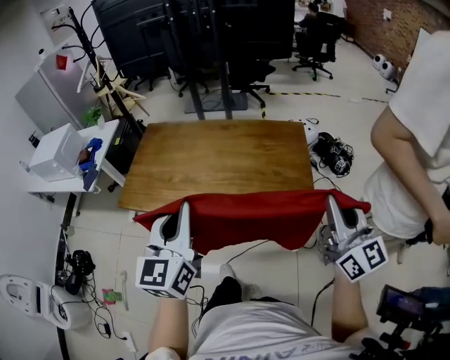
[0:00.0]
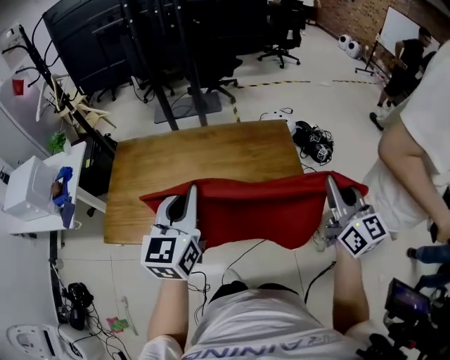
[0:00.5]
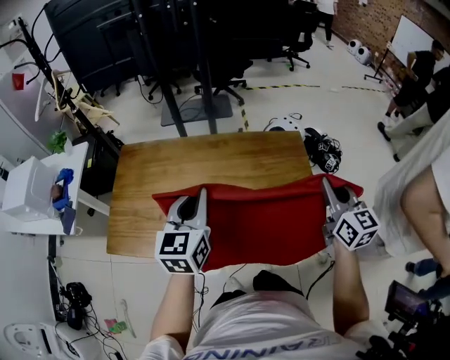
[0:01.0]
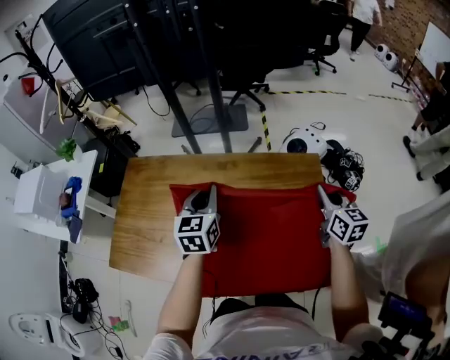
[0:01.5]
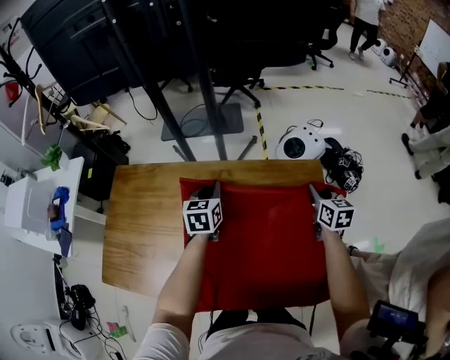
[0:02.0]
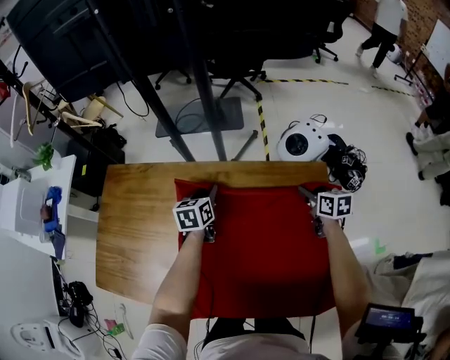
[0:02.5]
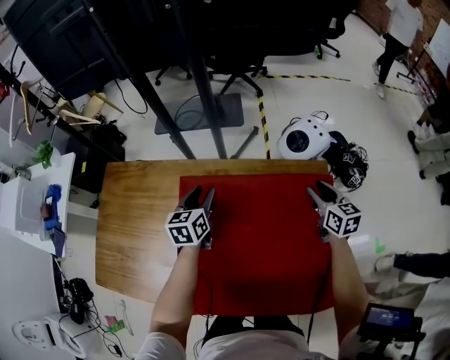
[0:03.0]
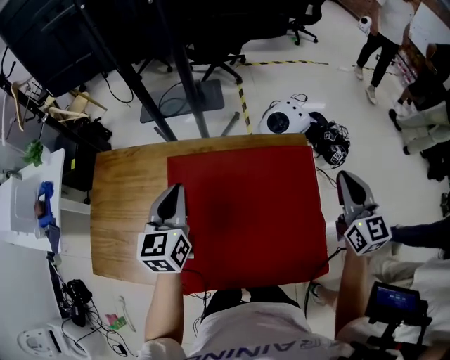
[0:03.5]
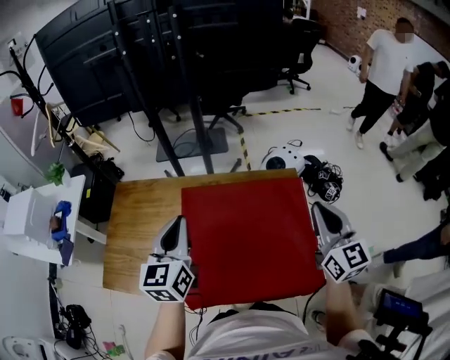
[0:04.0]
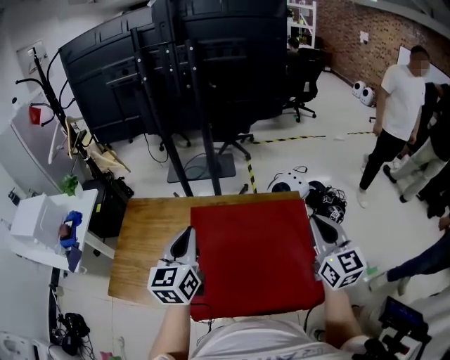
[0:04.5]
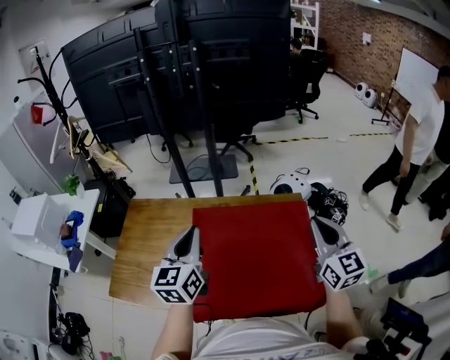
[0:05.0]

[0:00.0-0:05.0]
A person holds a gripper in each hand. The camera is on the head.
0:00.0 to 0:02.5: The pair of grippers is taken forward, approximately 60 cm. Both grippers move downward, roughly 35 cm. The right gripper angles its fingers downward, by approximately 40 degrees, and opens up, while the left gripper tips its fingers downward by roughly 30 degrees, and opens up.
0:02.5 to 0:05.0: Both grippers move upward and backward, some 40 cm. The right gripper angles its fingers upward, by approximately 30 degrees, and closes up; the left gripper changes its angle by roughly 30 degrees, and closes.

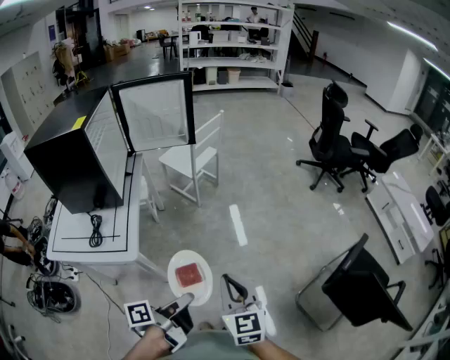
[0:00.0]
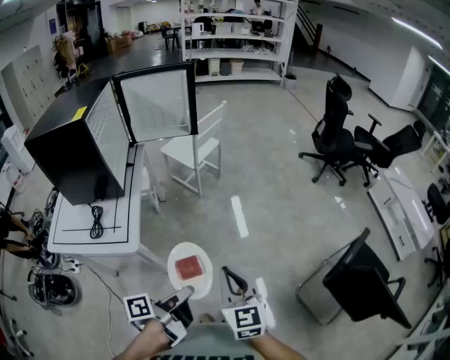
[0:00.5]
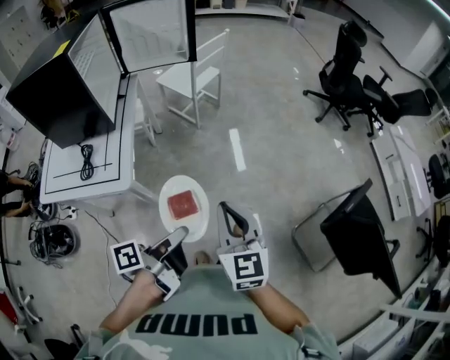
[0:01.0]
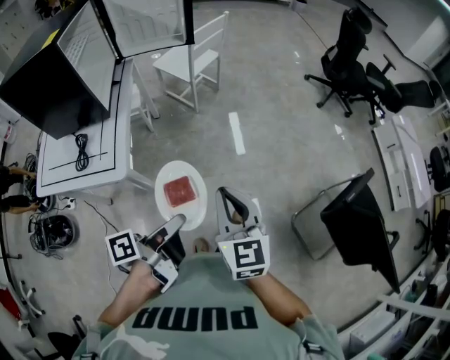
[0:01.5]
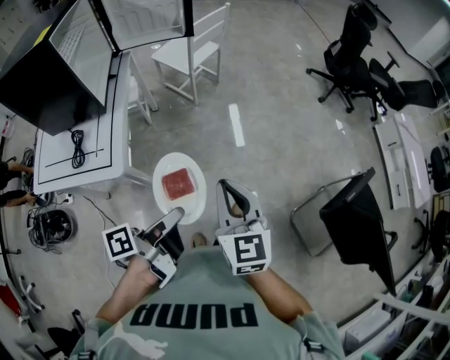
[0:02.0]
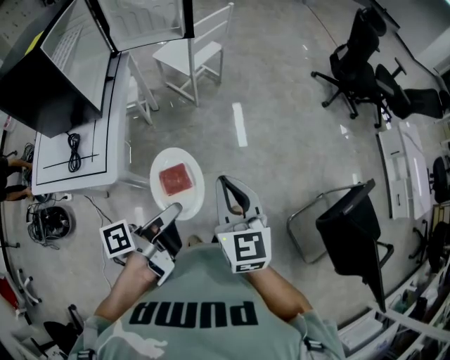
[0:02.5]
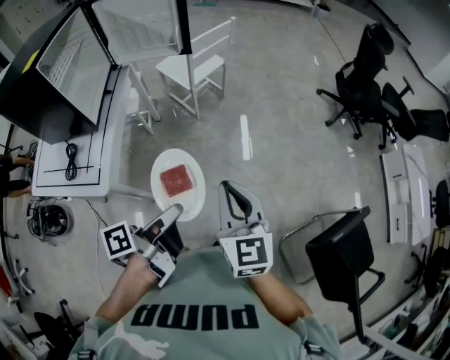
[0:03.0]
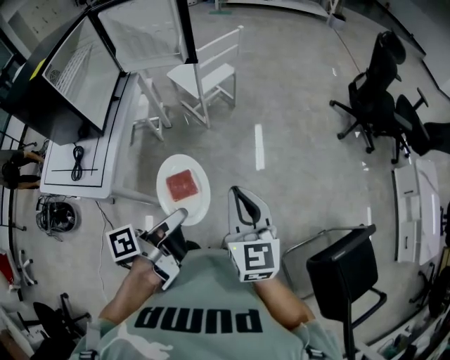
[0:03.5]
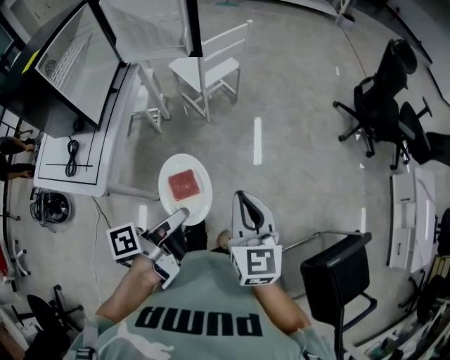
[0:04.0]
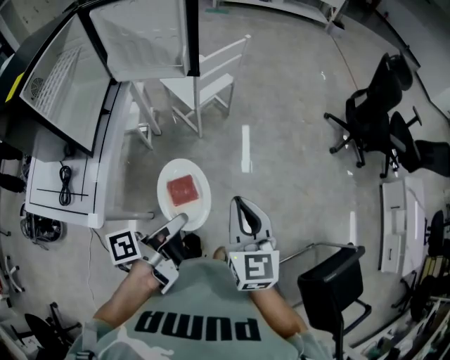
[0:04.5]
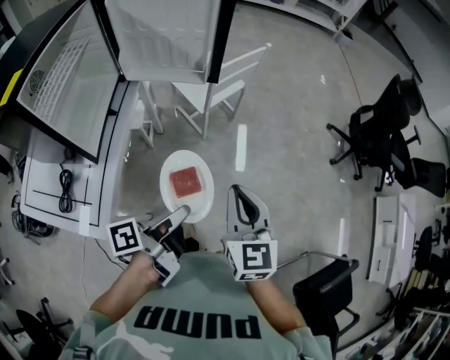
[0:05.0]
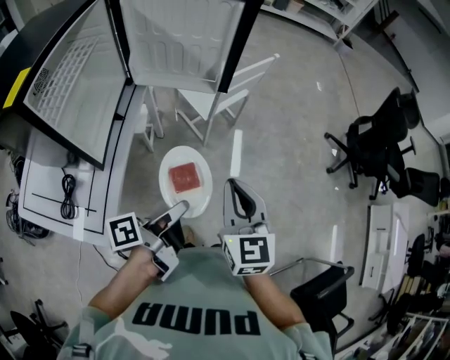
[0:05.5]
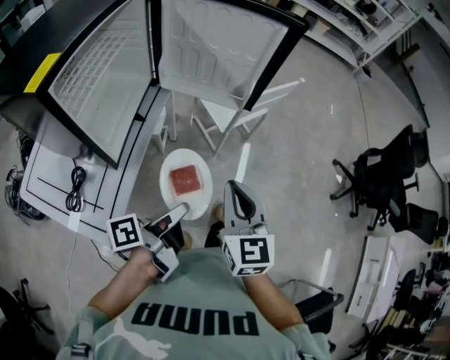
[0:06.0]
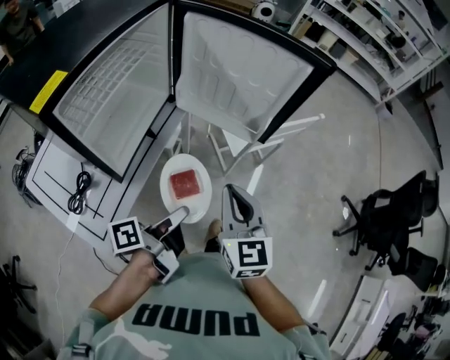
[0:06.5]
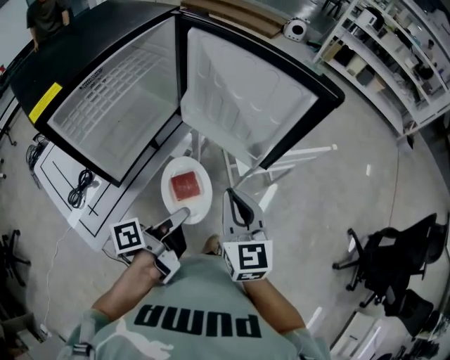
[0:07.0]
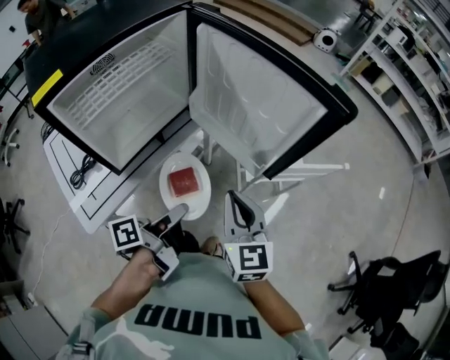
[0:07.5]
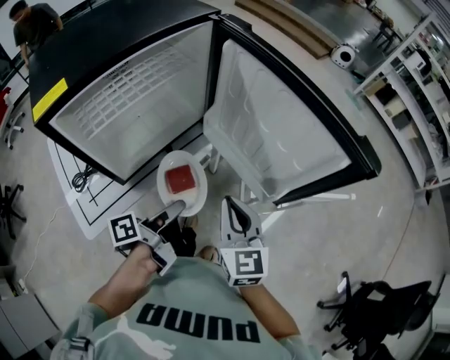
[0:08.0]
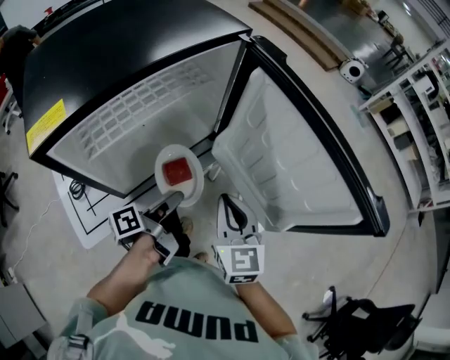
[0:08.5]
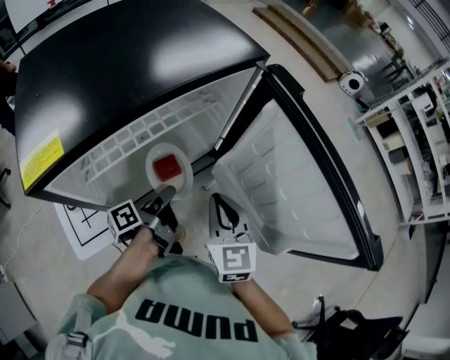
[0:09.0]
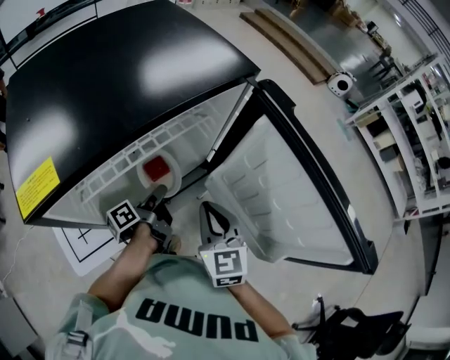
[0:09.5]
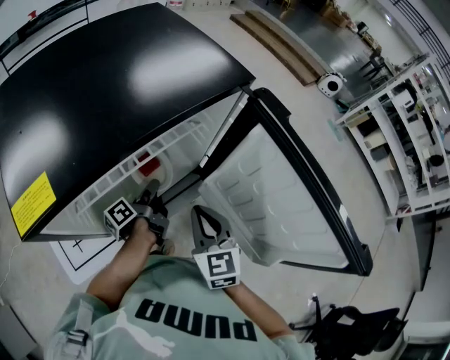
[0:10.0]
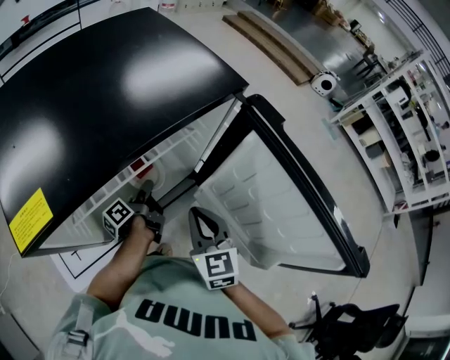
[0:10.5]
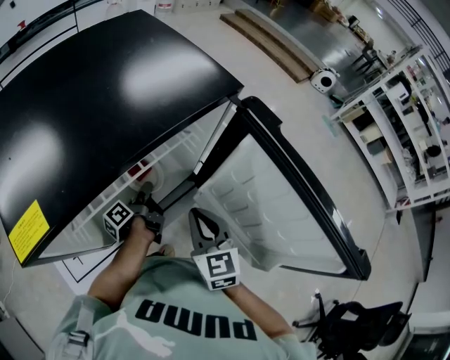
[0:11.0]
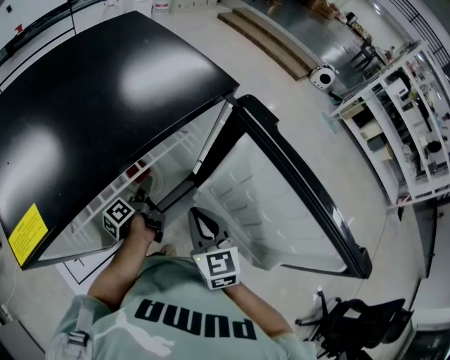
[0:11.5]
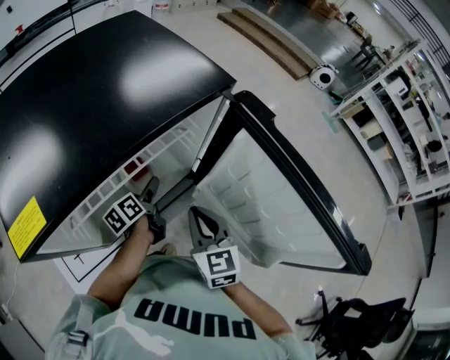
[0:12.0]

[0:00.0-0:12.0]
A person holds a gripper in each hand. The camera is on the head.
0:00.0 to 0:02.0: The right gripper shifts by roughly 5 cm.
0:02.0 to 0:04.0: The right gripper ends up about 20 cm from where it was.
0:04.0 to 0:06.0: The right gripper changes place by some 35 cm.
0:06.0 to 0:08.0: The right gripper ends up roughly 25 cm from where it was, and rotates approximately 40 degrees.
0:08.0 to 0:10.0: The right gripper changes place by roughly 20 cm.

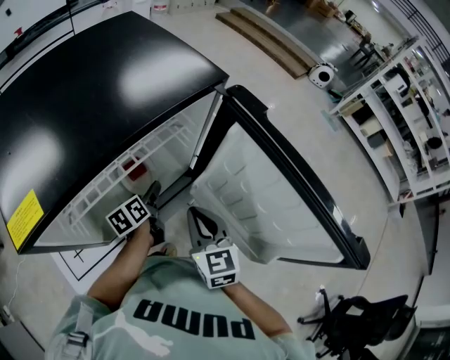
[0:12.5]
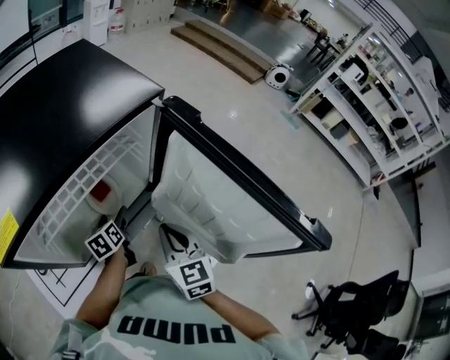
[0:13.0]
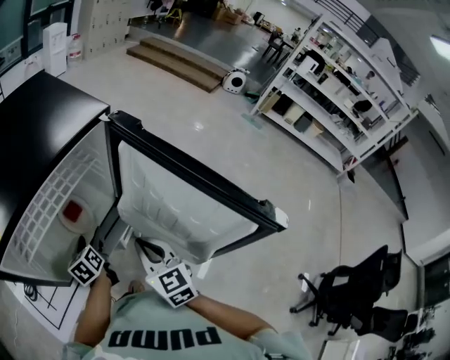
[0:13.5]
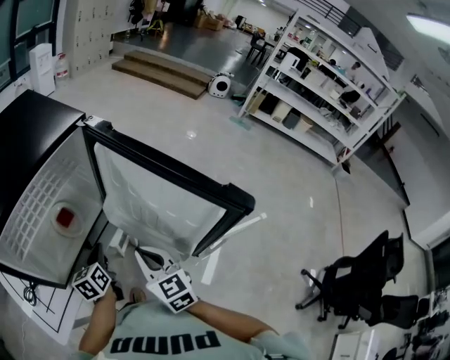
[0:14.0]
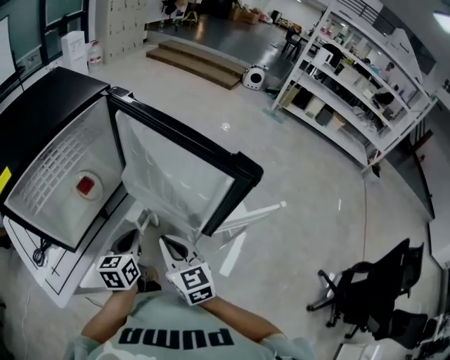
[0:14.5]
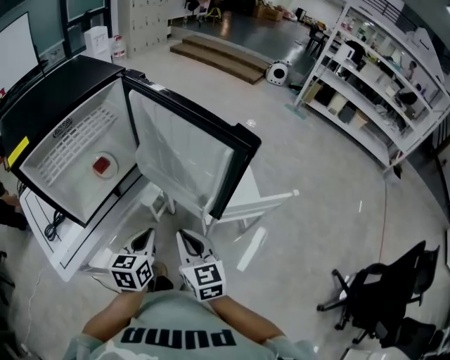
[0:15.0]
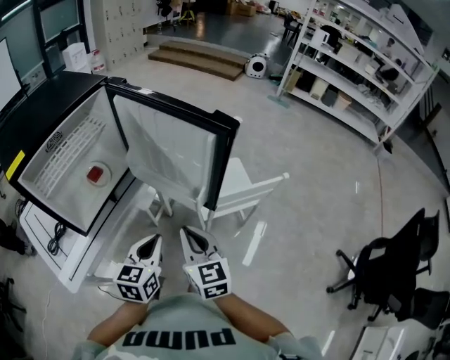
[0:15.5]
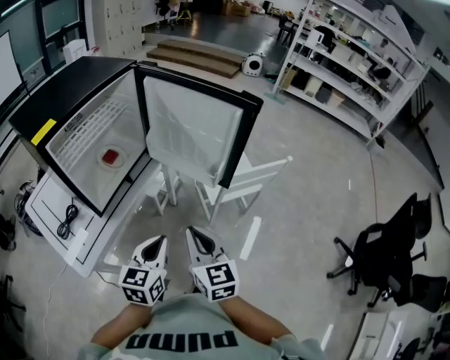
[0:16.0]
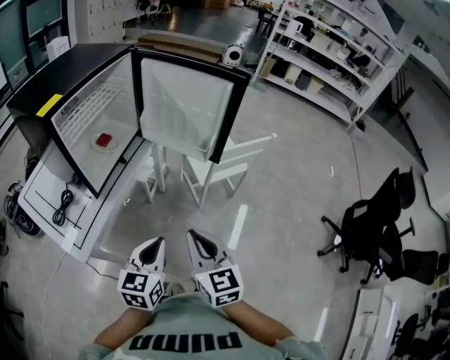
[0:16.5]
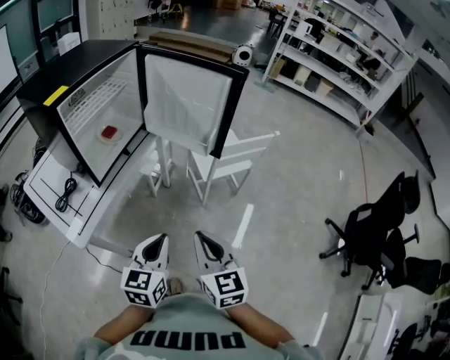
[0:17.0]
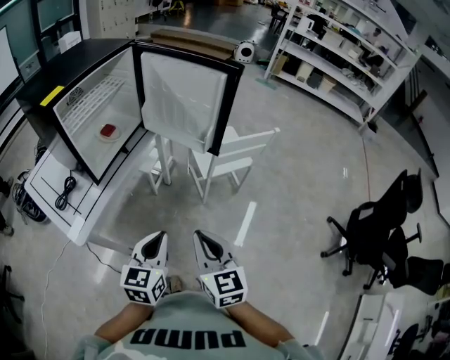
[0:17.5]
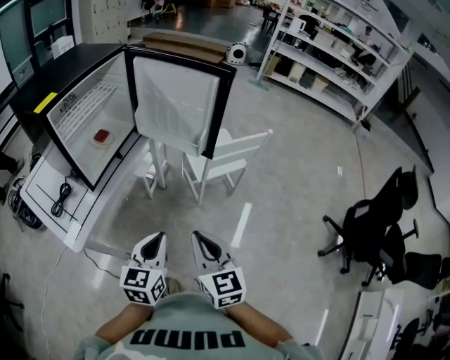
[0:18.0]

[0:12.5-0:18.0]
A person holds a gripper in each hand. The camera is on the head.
0:12.5 to 0:14.5: The right gripper ends up approximately 20 cm from where it was.
0:14.5 to 0:16.0: The right gripper moves approximately 20 cm.
0:16.0 to 0:18.0: The right gripper ends up some 15 cm from where it was.

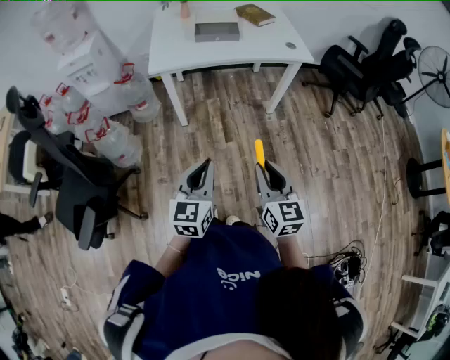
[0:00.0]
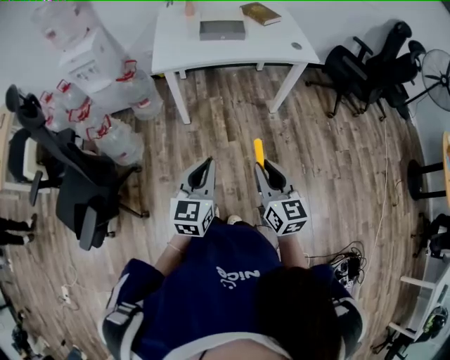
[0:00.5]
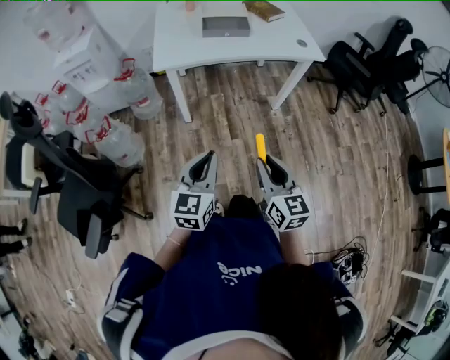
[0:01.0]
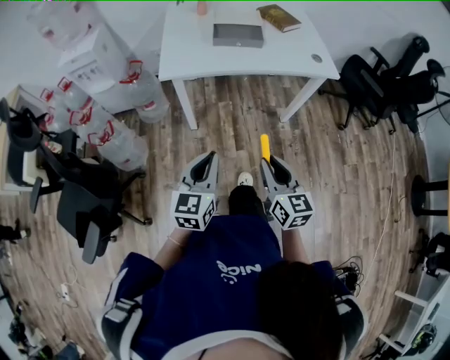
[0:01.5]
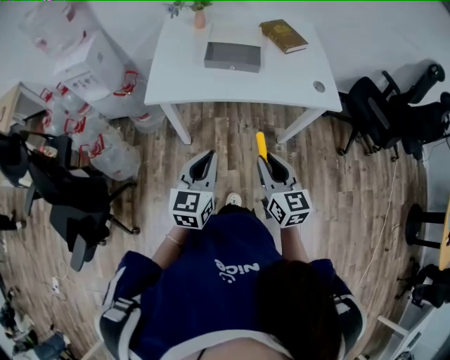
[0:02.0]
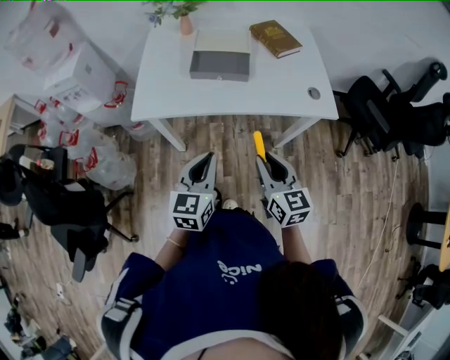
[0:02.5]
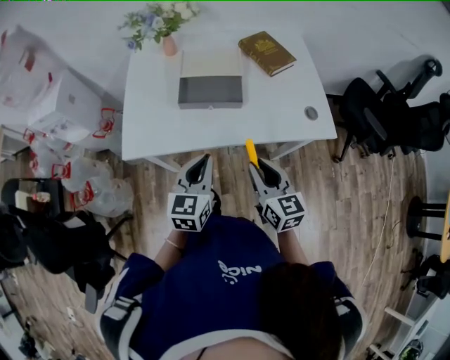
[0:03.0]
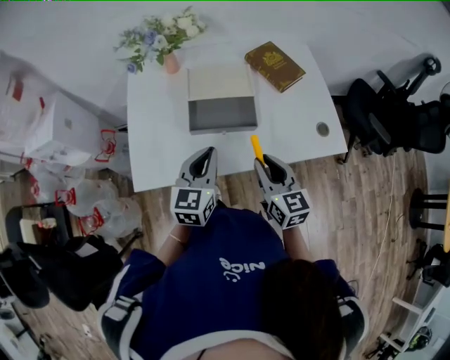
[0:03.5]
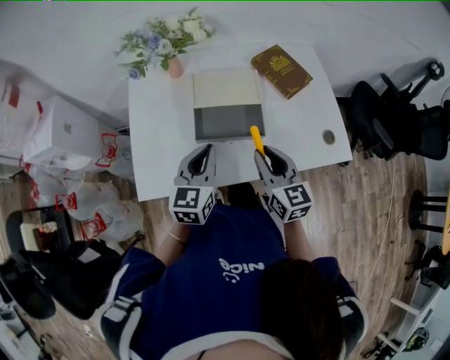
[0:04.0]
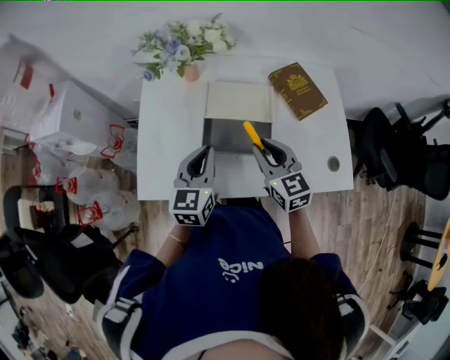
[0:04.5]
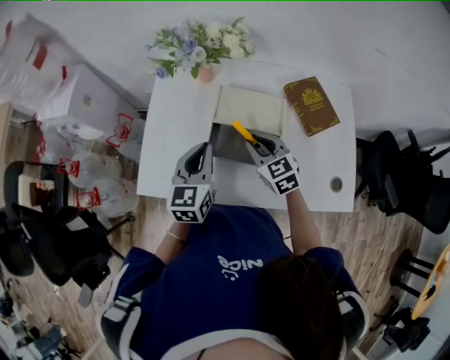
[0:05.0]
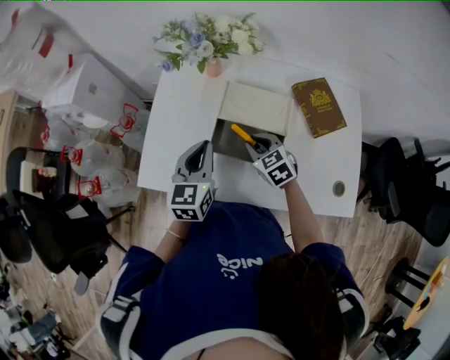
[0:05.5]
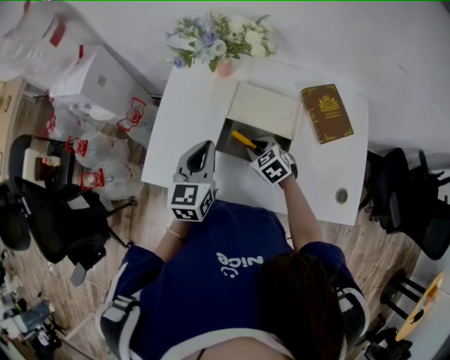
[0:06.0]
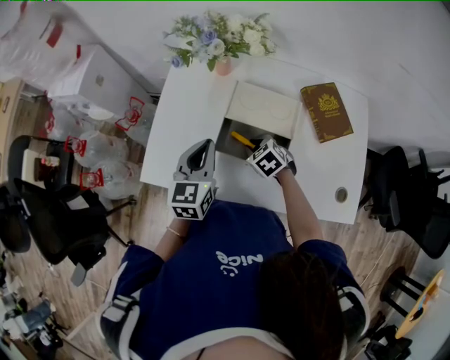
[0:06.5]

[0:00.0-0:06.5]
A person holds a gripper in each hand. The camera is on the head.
0:00.0 to 0:02.0: Both grippers travel together forward, roughly 35 cm.
0:02.0 to 0:04.5: The pair of grippers is taken forward, some 40 cm.
0:04.5 to 0:06.5: The right gripper travels downward and forward by some 20 cm, and tilts its fingers roughly 40 degrees downward.
